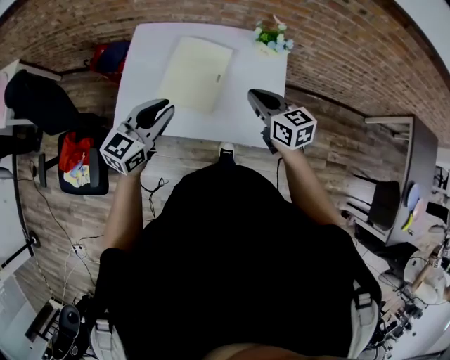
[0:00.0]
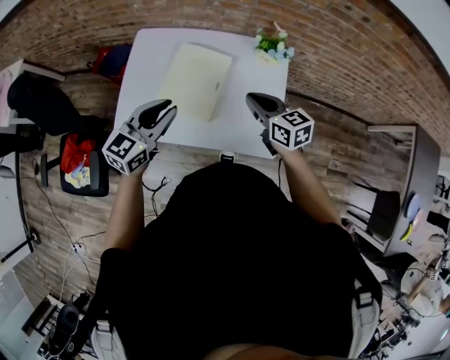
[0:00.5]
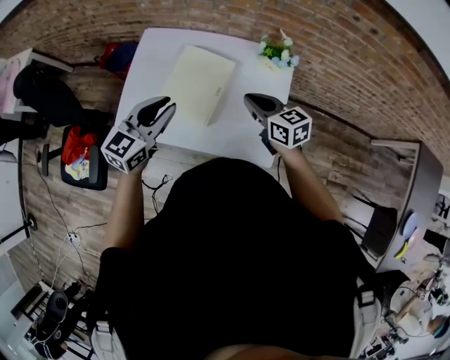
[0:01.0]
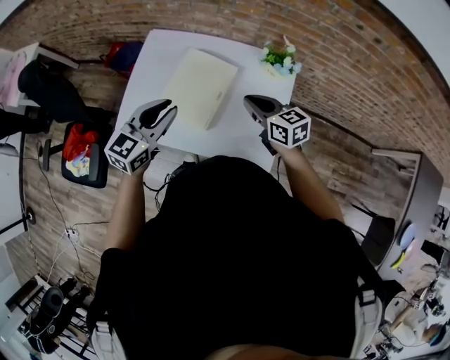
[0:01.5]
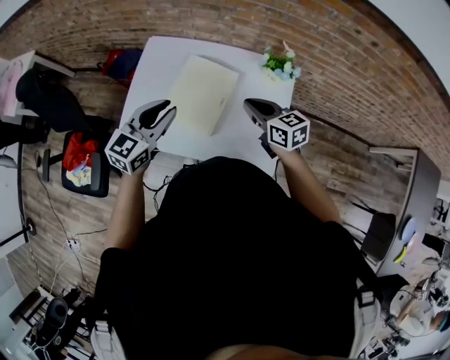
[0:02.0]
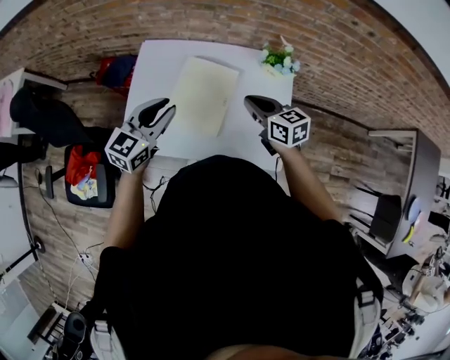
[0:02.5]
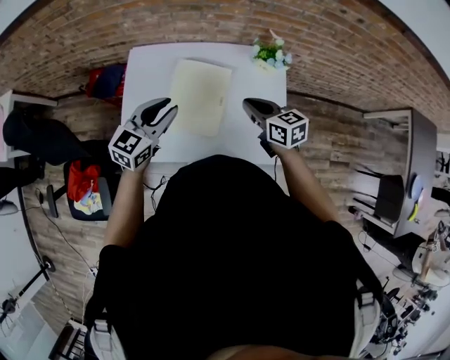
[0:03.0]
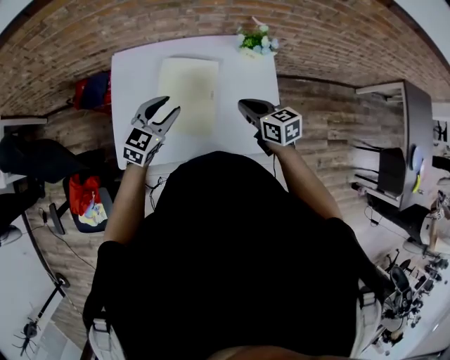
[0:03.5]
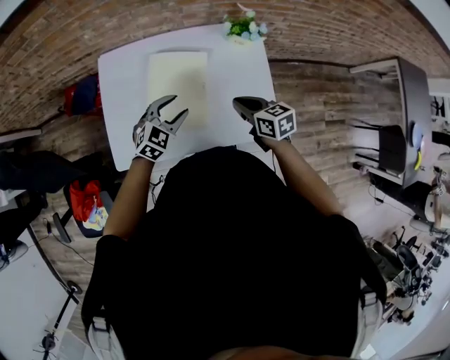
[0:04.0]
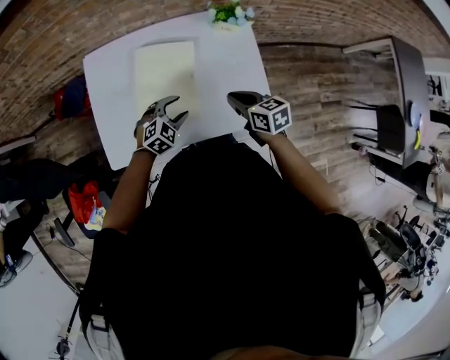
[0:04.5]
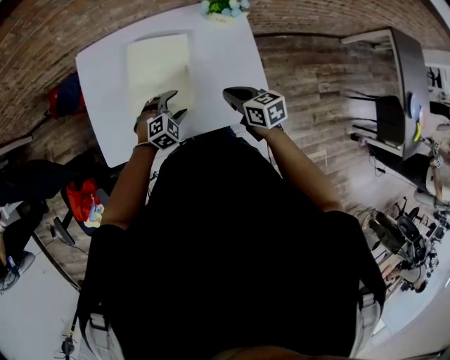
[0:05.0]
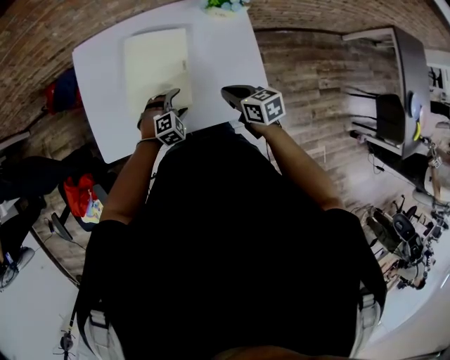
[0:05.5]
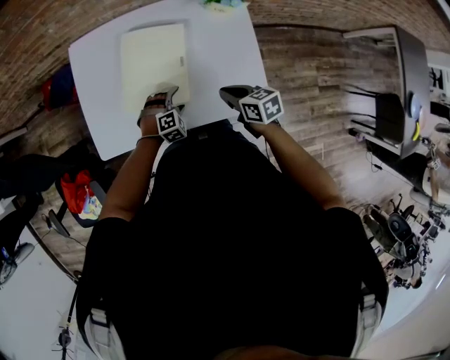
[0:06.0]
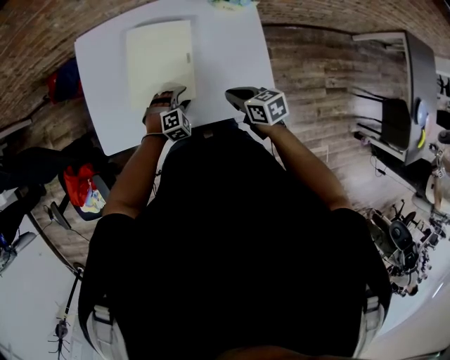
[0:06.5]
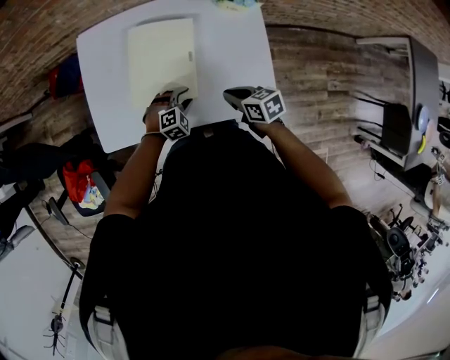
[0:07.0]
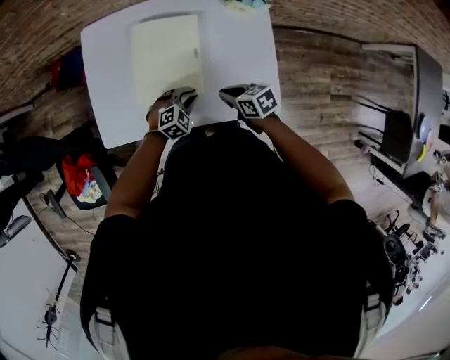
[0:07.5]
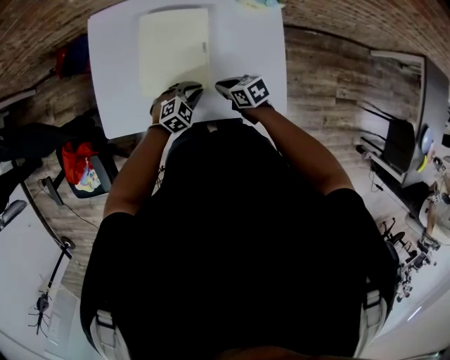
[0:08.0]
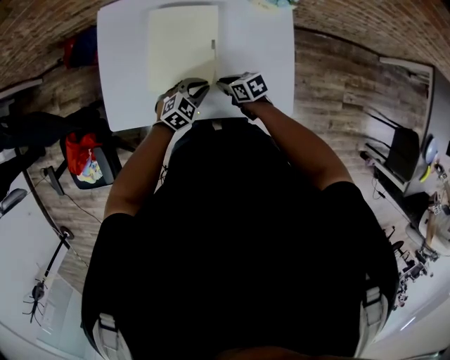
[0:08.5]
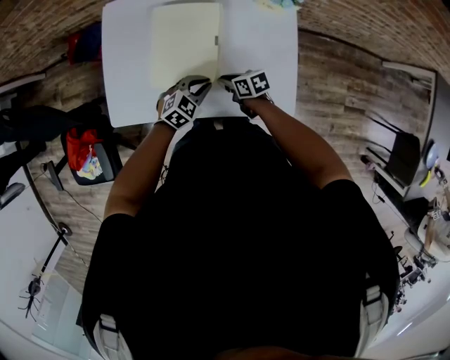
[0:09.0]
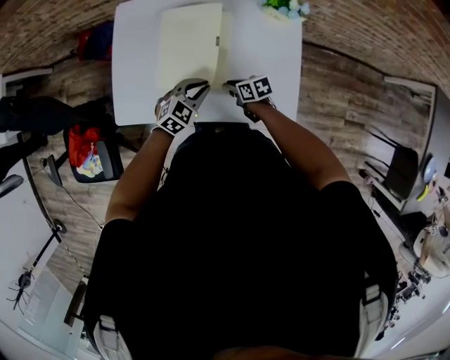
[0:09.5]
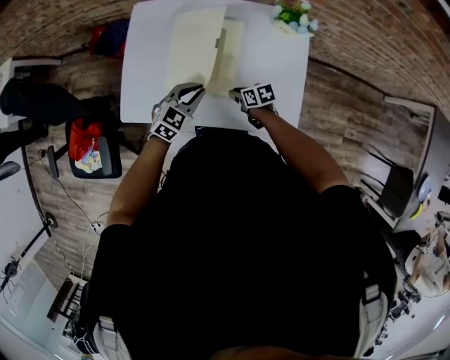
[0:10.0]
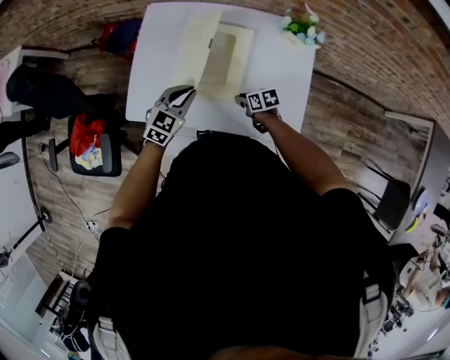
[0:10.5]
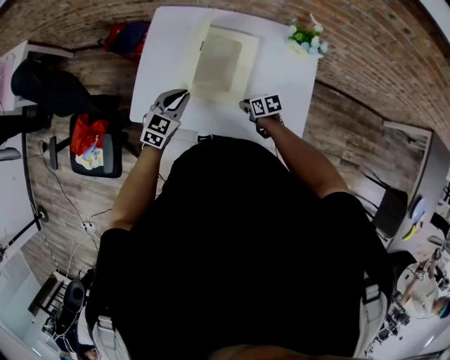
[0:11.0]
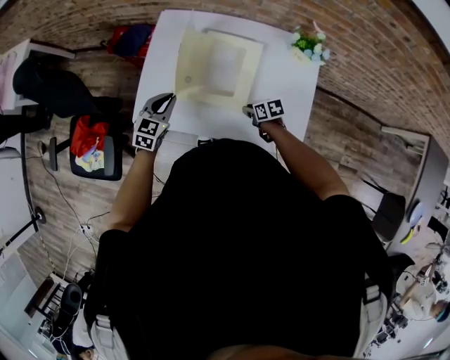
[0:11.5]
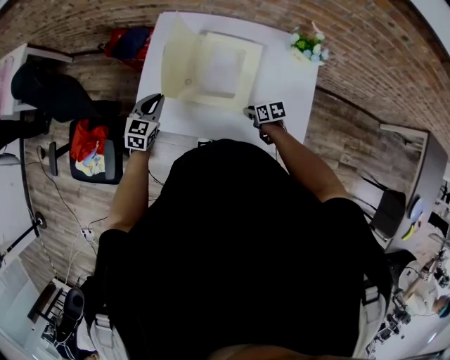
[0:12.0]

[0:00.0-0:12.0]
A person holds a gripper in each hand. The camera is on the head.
0:00.0 to 0:02.0: The grippers both shift forward by some 5 cm.
0:02.0 to 0:04.0: The left gripper moves downward, some 15 cm, changes its angle by approximately 40 degrees, and opens. The right gripper heads downward and backward, covering some 10 cm, and rotates approximately 20 degrees.
0:04.0 to 0:06.0: The right gripper is displaced downward by about 10 cm. The left gripper heads downward, covering approximately 20 cm, turns by approximately 40 degrees, and opens its fingers.
0:06.0 to 0:08.0: The left gripper rotates approximately 30 degrees, and closes. Meanwhile the right gripper goes roughly 10 cm downward.
0:08.0 to 0:10.0: The right gripper changes place by some 5 cm. The left gripper goes some 10 cm upward, and swivels approximately 30 degrees.
0:10.0 to 0:12.0: The left gripper goes about 20 cm to the left and forward, and rotates about 30 degrees.

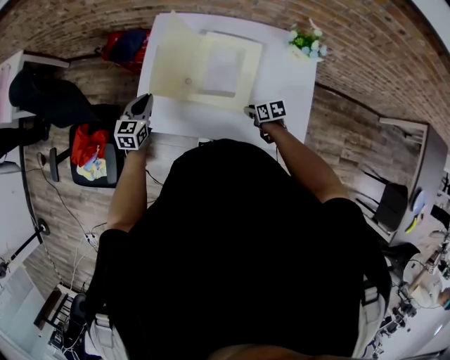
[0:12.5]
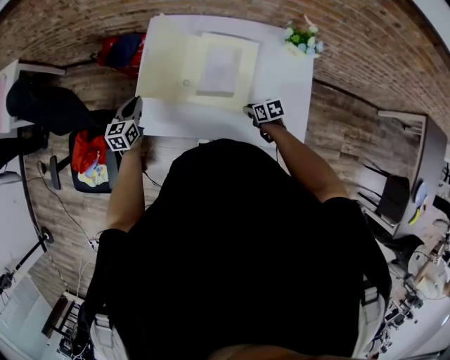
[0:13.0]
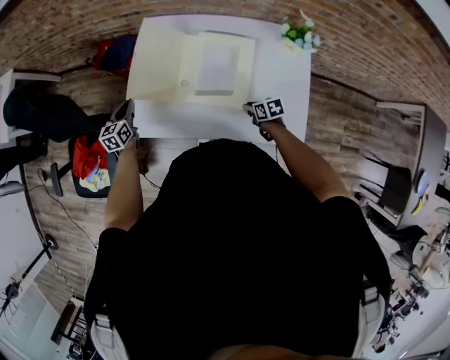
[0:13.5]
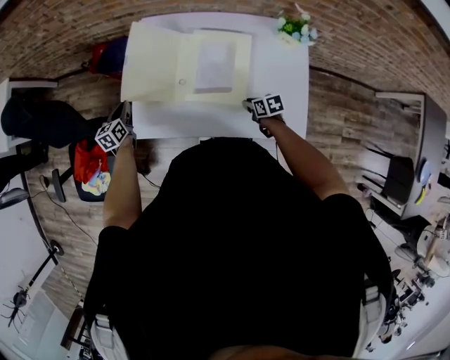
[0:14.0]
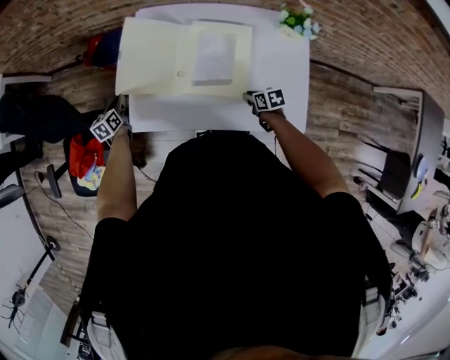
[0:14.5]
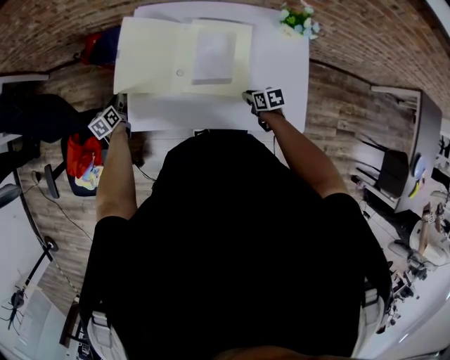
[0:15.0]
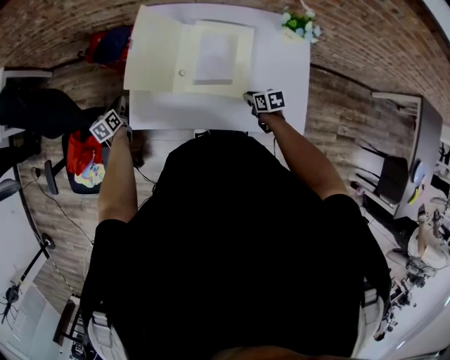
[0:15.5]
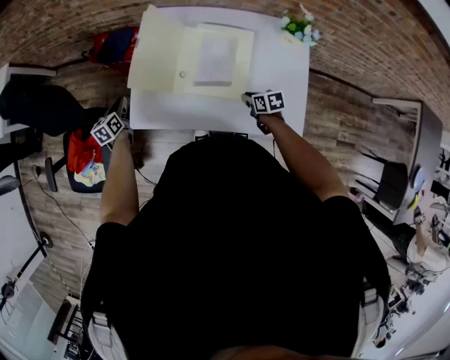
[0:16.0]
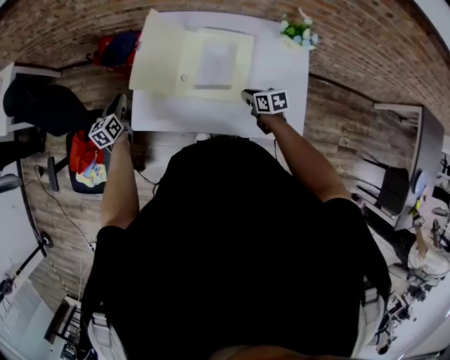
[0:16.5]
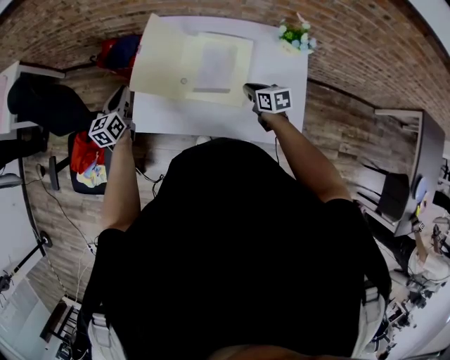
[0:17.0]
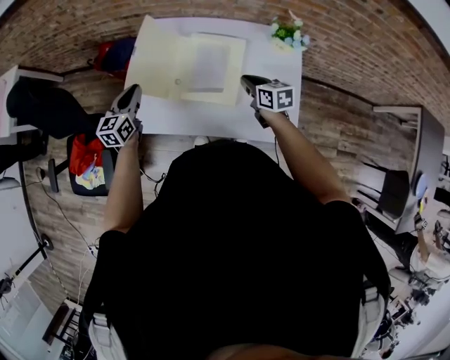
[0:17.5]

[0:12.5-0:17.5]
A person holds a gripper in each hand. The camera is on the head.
0:12.5 to 0:15.0: The left gripper heads downward, to the left and forward, covering roughly 20 cm, and turns by approximately 30 degrees.
0:15.0 to 0:17.5: The left gripper goes approximately 25 cm upward and to the right, and rotates some 30 degrees, while the right gripper moves upward, roughly 20 cm, and rotates some 30 degrees.

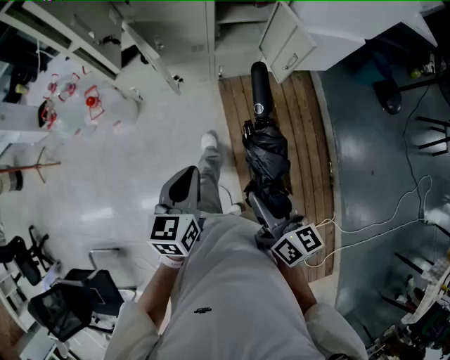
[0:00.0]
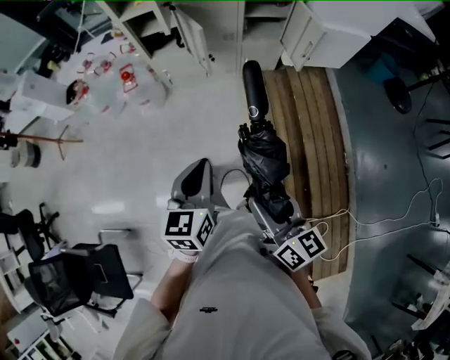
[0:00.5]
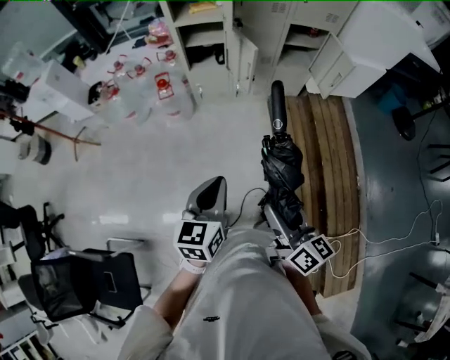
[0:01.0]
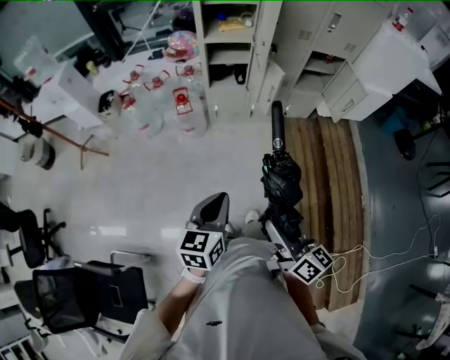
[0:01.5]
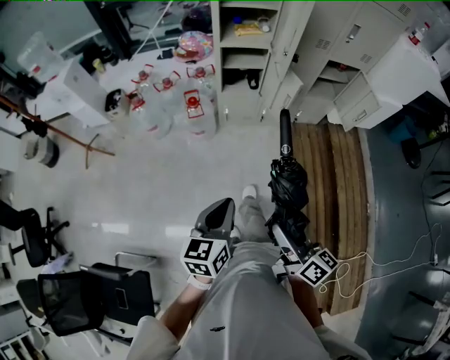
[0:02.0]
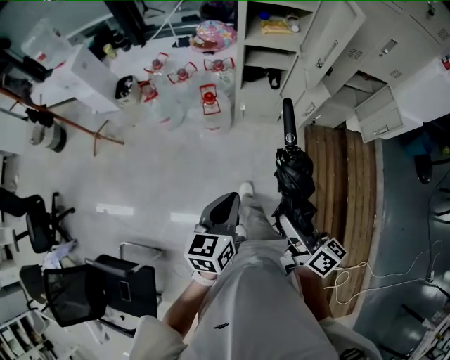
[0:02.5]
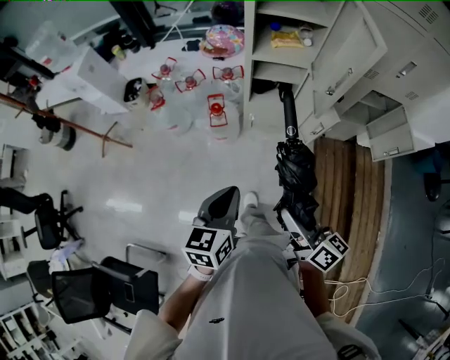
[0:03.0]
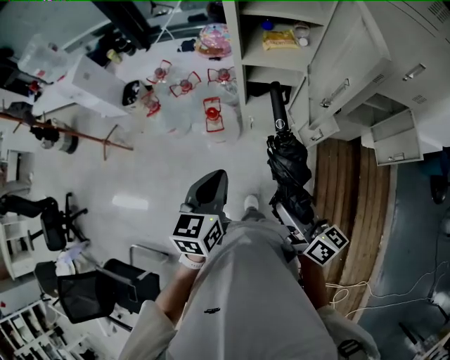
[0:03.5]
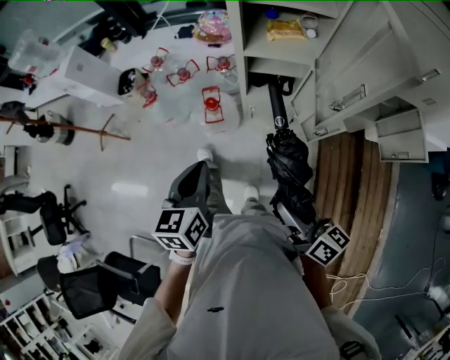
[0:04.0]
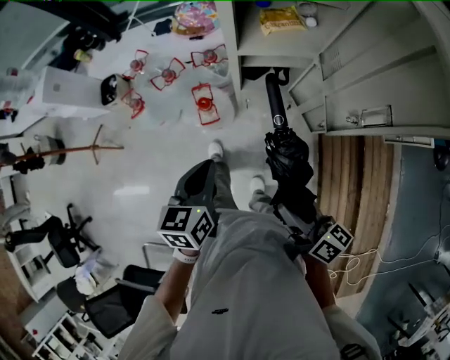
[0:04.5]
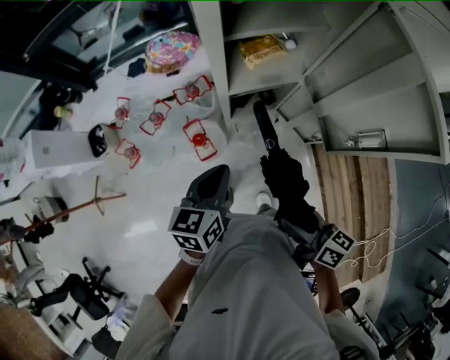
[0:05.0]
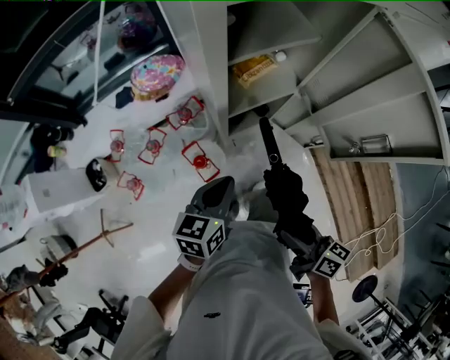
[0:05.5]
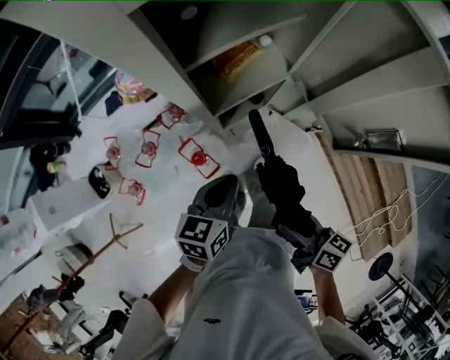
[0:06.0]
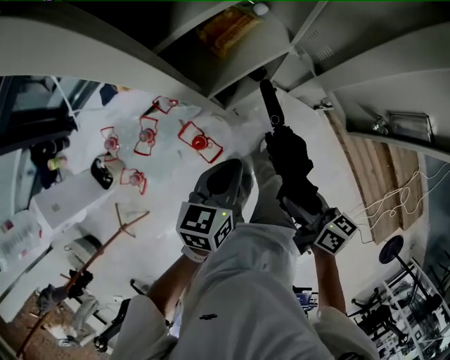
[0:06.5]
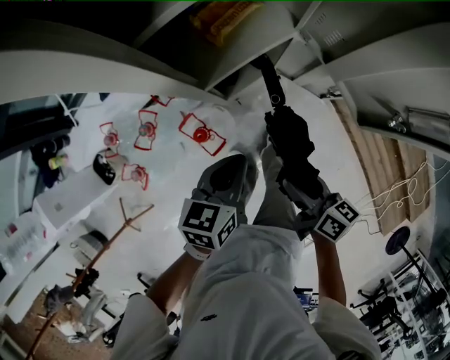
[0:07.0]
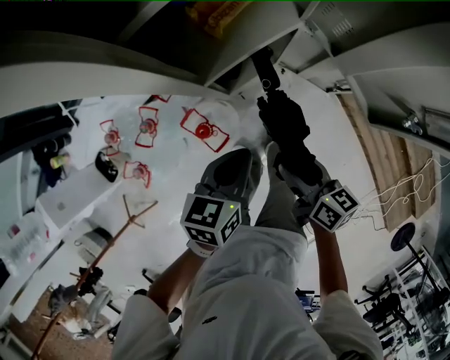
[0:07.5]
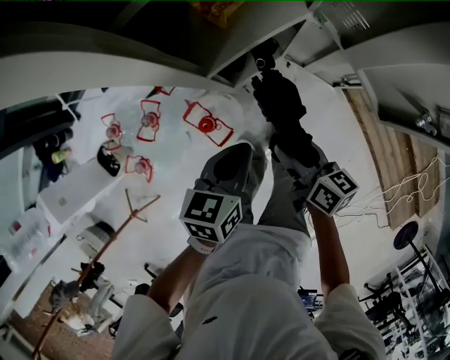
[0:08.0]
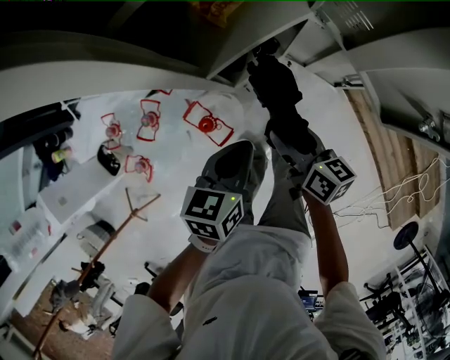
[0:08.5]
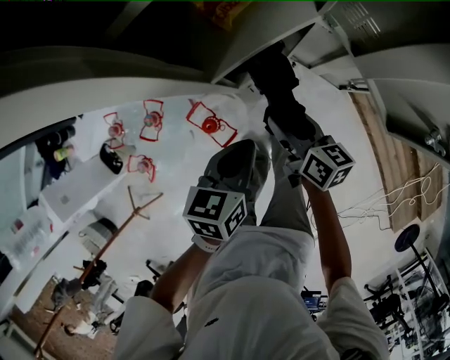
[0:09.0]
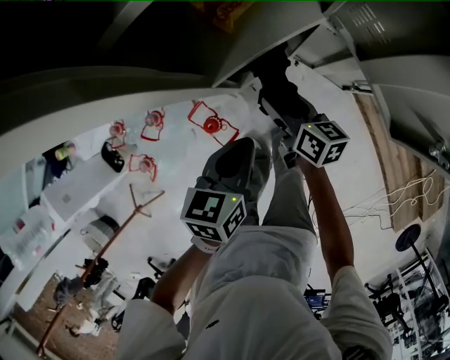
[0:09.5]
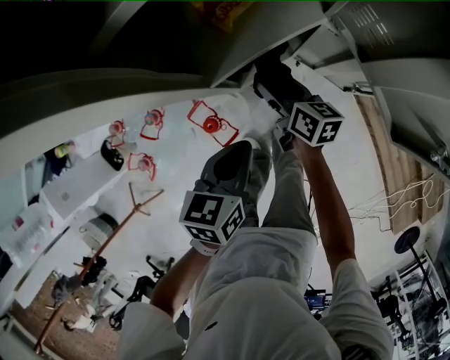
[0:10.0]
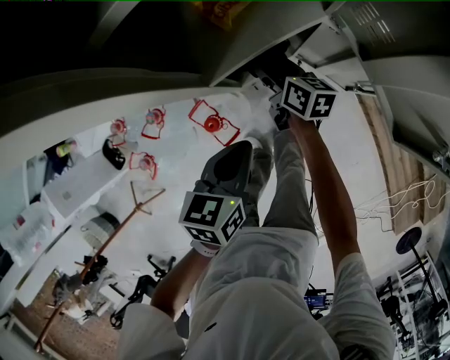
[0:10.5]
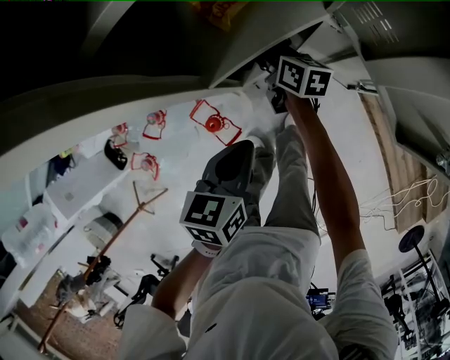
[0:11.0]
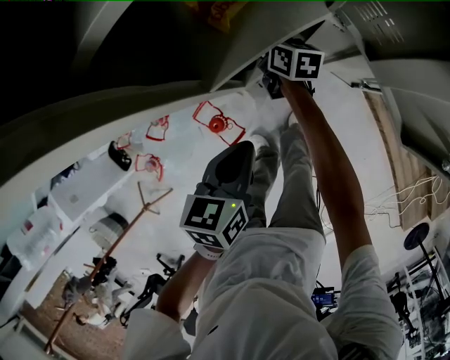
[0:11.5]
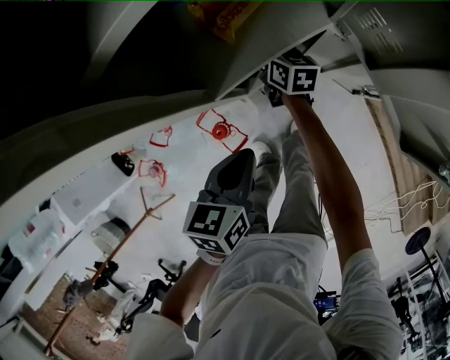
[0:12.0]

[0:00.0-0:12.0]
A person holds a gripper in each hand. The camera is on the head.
0:00.0 to 0:02.0: The left gripper moves to the left and backward, roughly 35 cm; the right gripper heads to the left, covering roughly 35 cm.
0:02.0 to 0:04.0: Both grippers travel together forward, some 30 cm.
0:04.0 to 0:06.0: The right gripper moves some 20 cm, and rotates about 30 degrees, while the left gripper changes place by approximately 20 cm, and changes its angle by approximately 50 degrees.
0:06.0 to 0:08.0: The right gripper moves downward and forward, about 15 cm. The left gripper travels downward by roughly 10 cm.
0:08.0 to 0:10.0: The right gripper goes approximately 15 cm forward.
0:10.0 to 0:12.0: The right gripper shifts roughly 10 cm forward.
